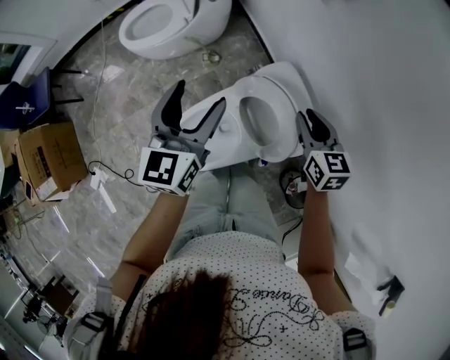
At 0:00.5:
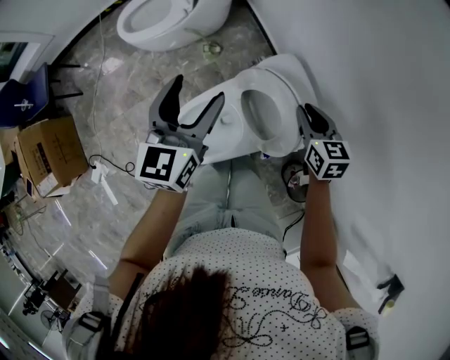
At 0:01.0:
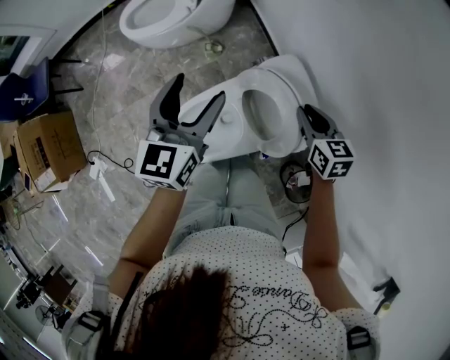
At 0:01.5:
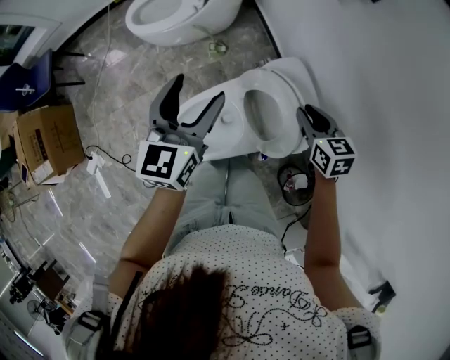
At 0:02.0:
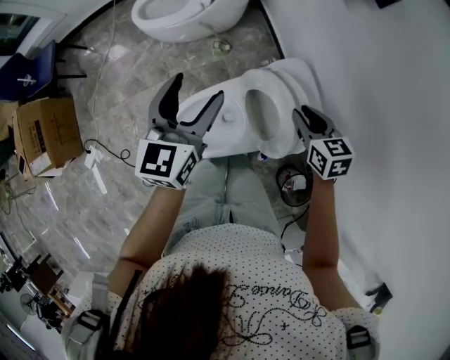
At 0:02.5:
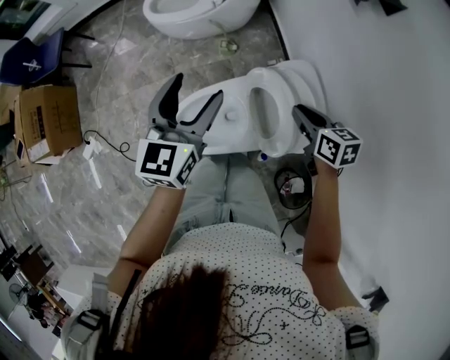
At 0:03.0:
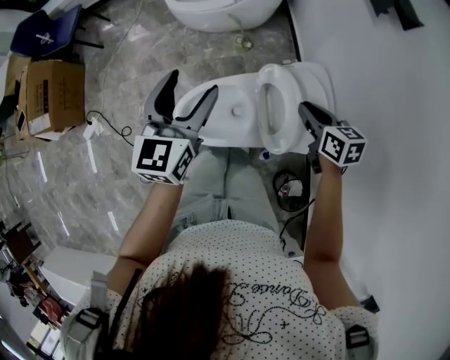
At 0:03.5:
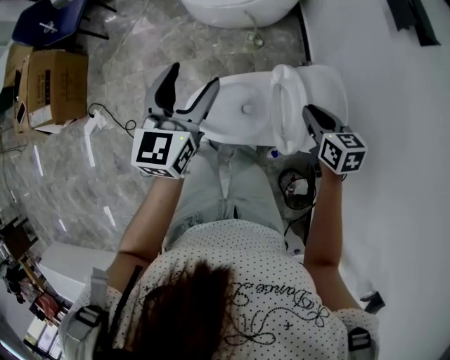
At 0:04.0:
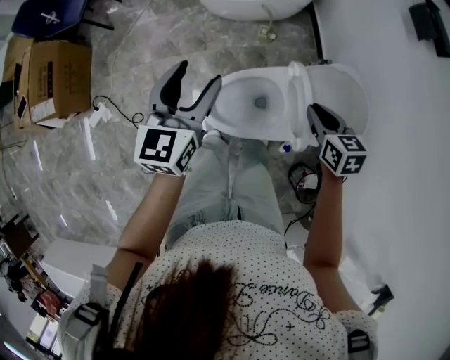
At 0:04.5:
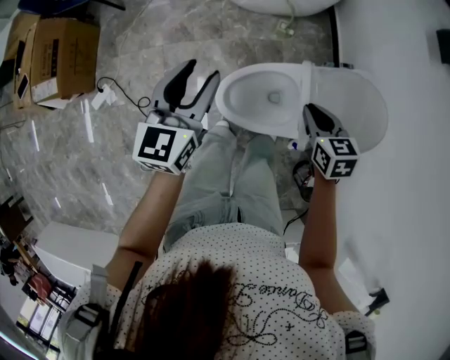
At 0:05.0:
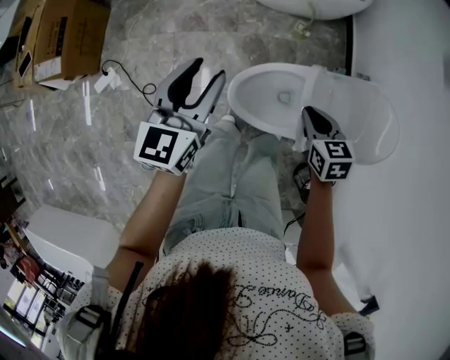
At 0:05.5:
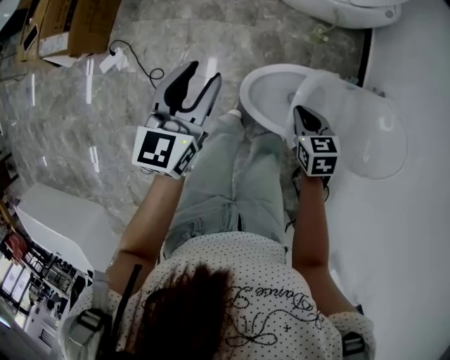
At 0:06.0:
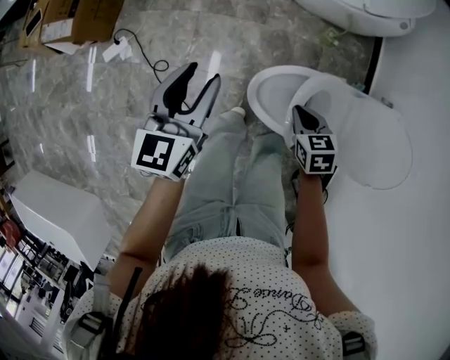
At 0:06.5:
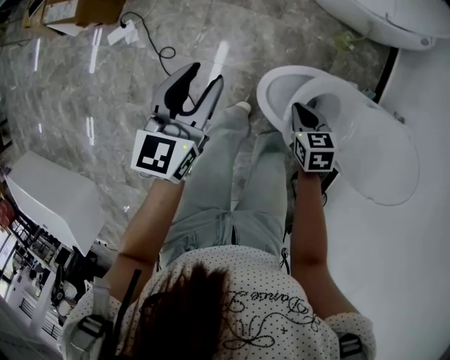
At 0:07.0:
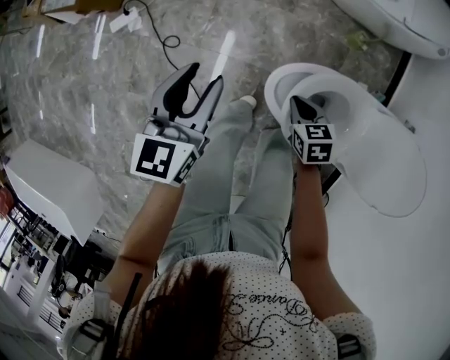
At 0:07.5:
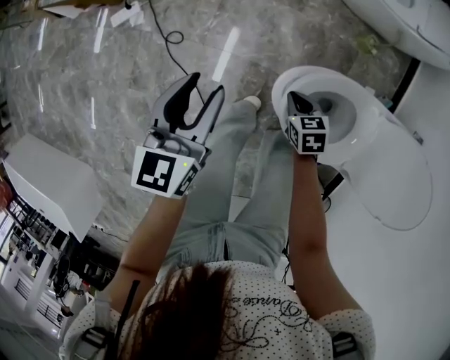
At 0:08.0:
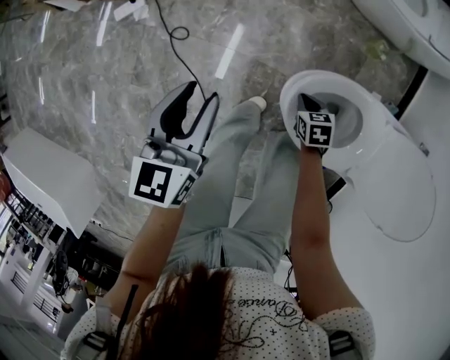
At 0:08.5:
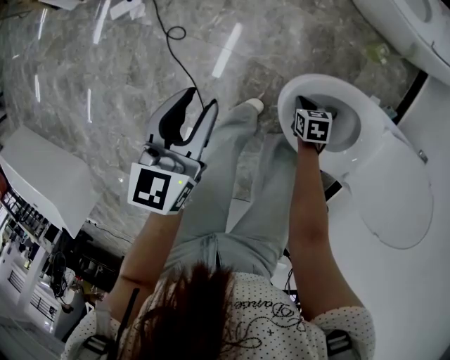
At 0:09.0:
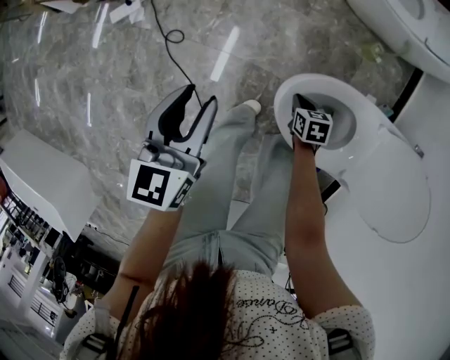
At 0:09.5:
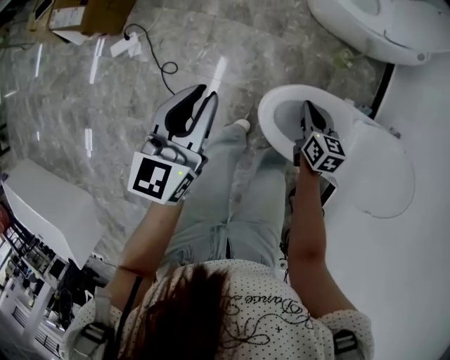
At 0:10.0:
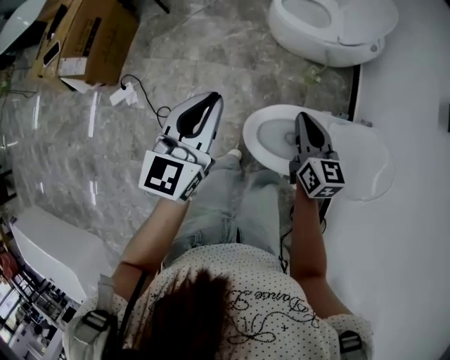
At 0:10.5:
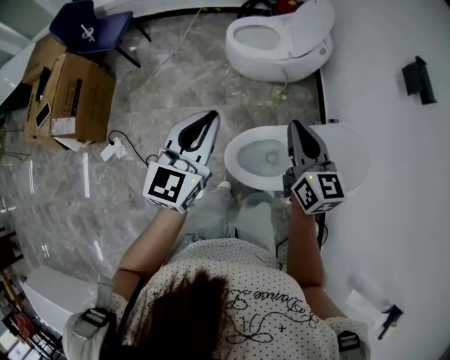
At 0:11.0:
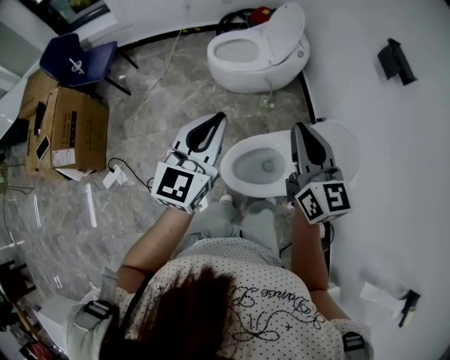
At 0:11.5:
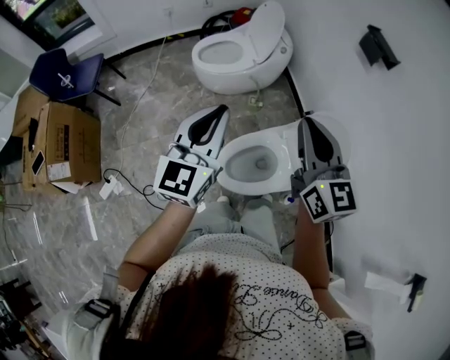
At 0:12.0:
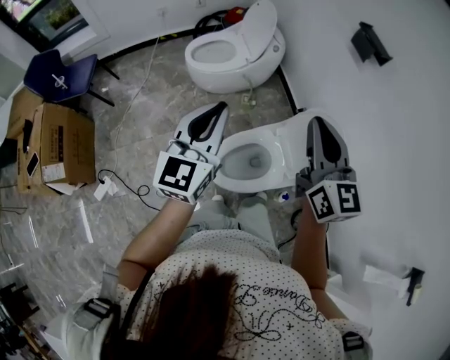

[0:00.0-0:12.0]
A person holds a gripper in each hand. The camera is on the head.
0:00.0 to 0:02.0: The right gripper changes place by approximately 5 cm.
0:02.0 to 0:04.0: Both grippers move to the left, roughly 20 cm.
0:04.0 to 0:06.0: The right gripper goes roughly 30 cm to the left and downward, and changes its angle by roughly 30 degrees; the left gripper is displaced to the left by roughly 20 cm.
0:06.0 to 0:08.0: The left gripper travels downward and to the left by some 15 cm, while the right gripper is displaced downward by roughly 25 cm.
0:08.0 to 0:10.0: The left gripper shifts some 25 cm upward, turns by some 30 degrees, and closes up. The right gripper heads upward, covering about 40 cm, and angles its fingers upward, by about 40 degrees.
0:10.0 to 0:12.0: The right gripper is displaced upward by some 25 cm, and swivels approximately 40 degrees; the left gripper ends up about 20 cm from where it was, and swivels roughly 30 degrees.

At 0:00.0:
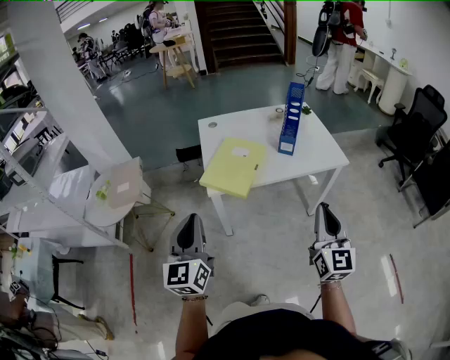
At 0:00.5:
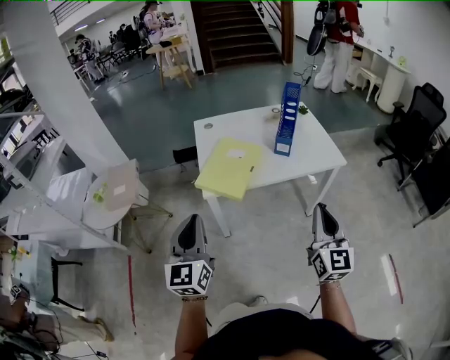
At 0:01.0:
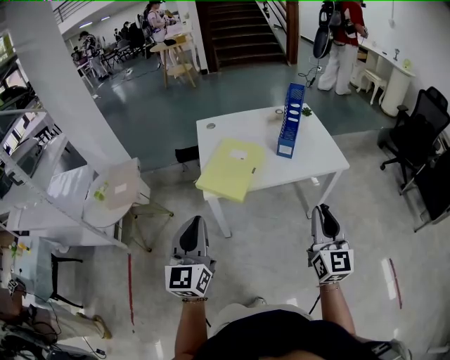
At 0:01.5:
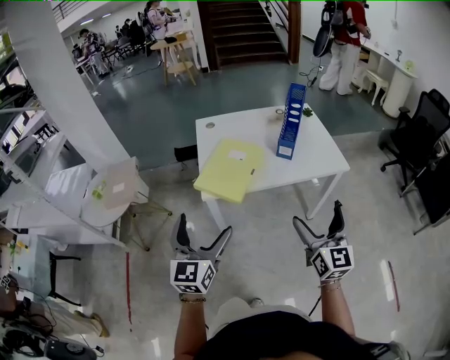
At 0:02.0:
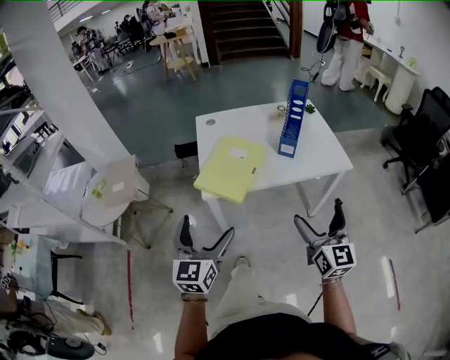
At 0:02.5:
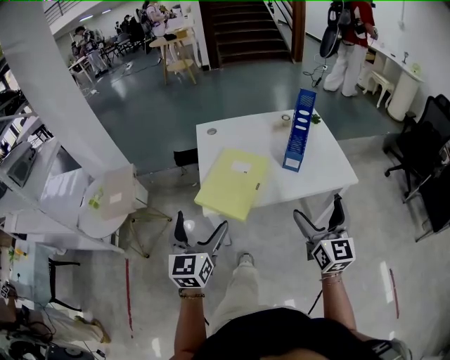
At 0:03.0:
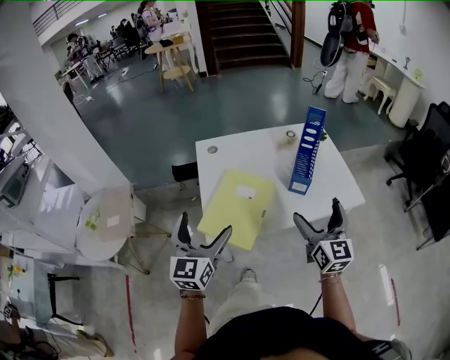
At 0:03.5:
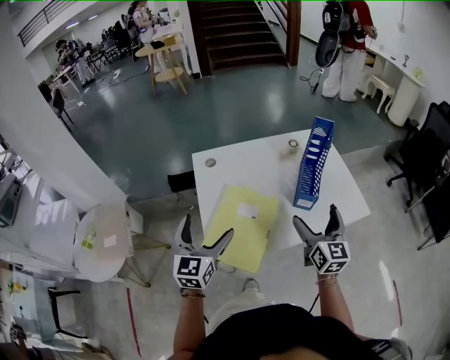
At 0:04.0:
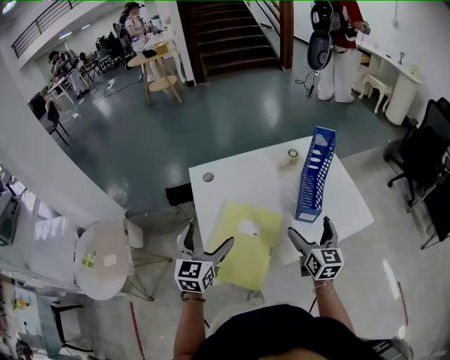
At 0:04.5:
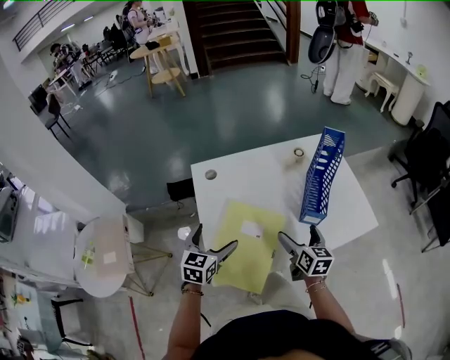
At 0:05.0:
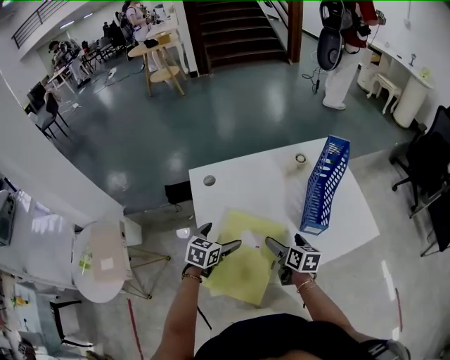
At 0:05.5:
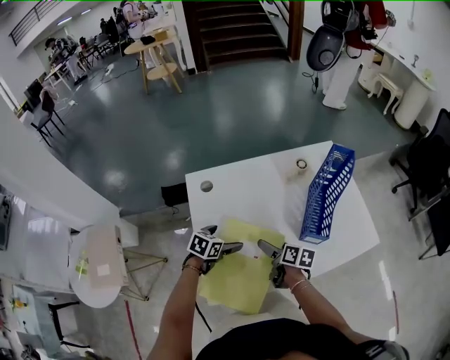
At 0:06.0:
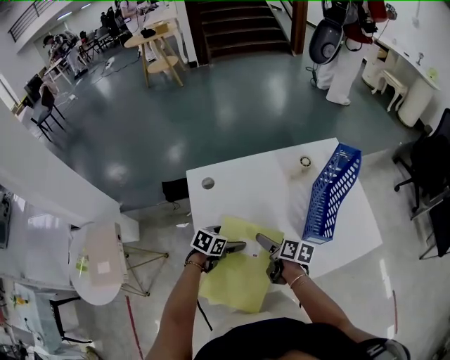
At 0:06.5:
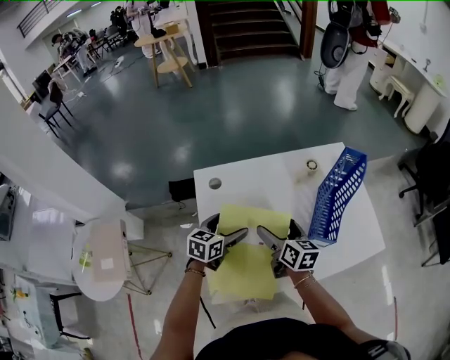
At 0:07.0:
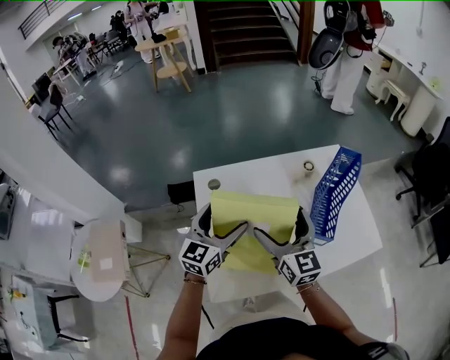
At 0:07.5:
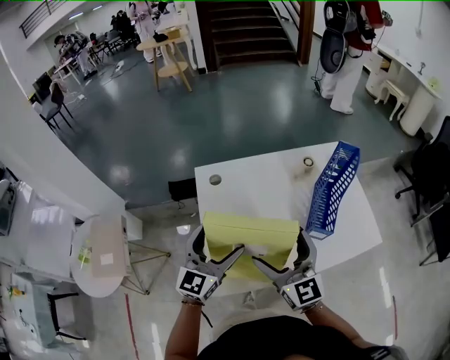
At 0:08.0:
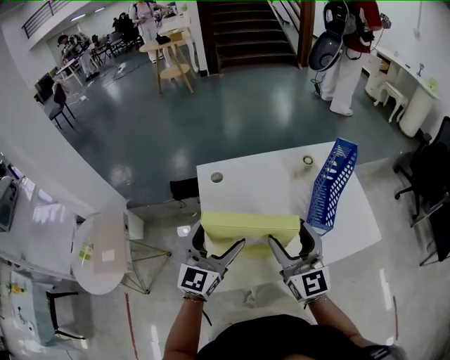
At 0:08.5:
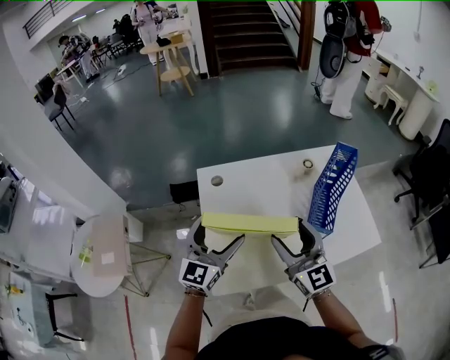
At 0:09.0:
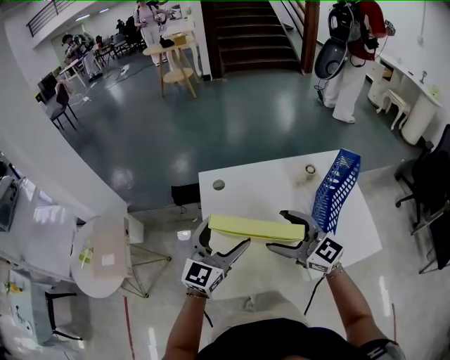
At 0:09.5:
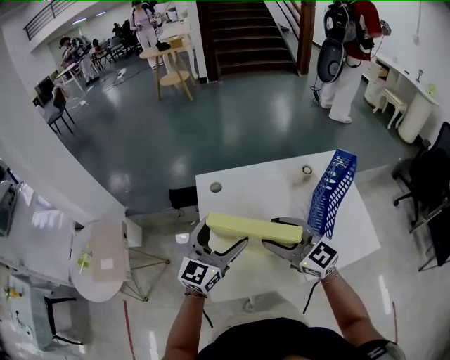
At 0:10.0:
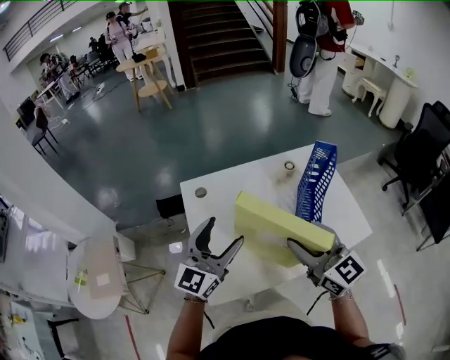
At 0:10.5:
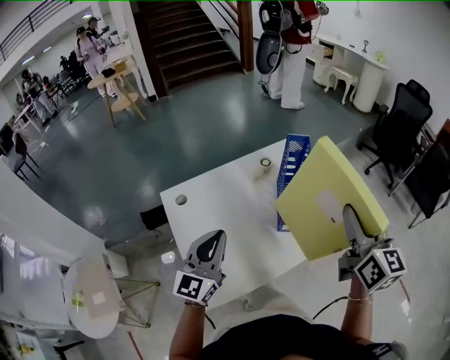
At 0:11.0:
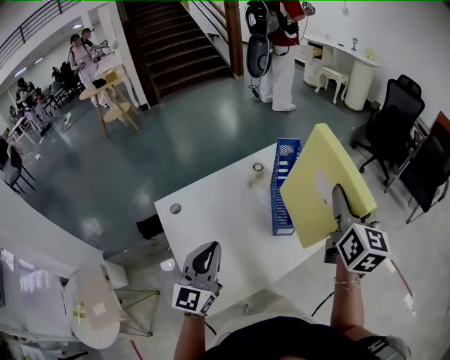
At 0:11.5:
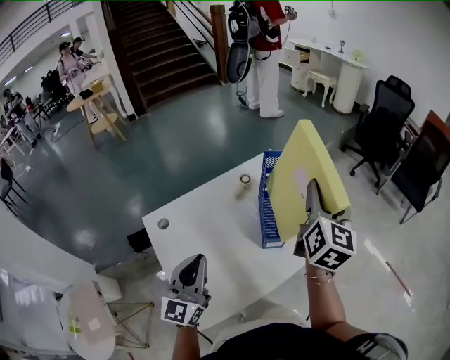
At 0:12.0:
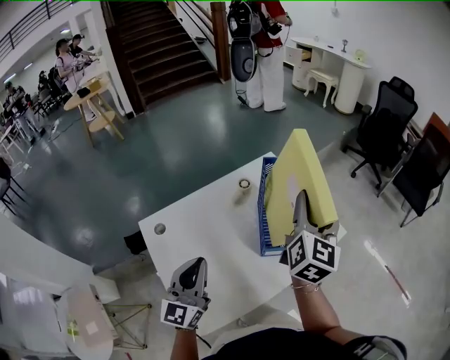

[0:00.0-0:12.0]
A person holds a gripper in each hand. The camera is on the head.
0:00.0 to 0:02.0: The right gripper is displaced forward by roughly 5 cm, and opens, while the left gripper travels to the right, forward and downward by roughly 10 cm, and opens its fingers.
0:02.0 to 0:04.0: The grippers both shift forward by about 35 cm.
0:04.0 to 0:06.0: The right gripper shifts roughly 25 cm downward, to the left and forward, and changes its angle by approximately 50 degrees, while the left gripper heads downward and forward, covering approximately 25 cm, and tips its fingers downward by about 30 degrees.
0:06.0 to 0:08.0: The two grippers go about 30 cm upward. The left gripper tips its fingers upward by roughly 50 degrees. The right gripper twists about 60 degrees counterclockwise, seen from behind, and closes up.
0:08.0 to 0:10.0: The right gripper travels to the right by about 5 cm. The left gripper moves approximately 5 cm.
0:10.0 to 0:12.0: The right gripper changes place by approximately 25 cm, and rotates approximately 70 degrees. Meanwhile the left gripper ends up about 5 cm from where it was, and closes its fingers.

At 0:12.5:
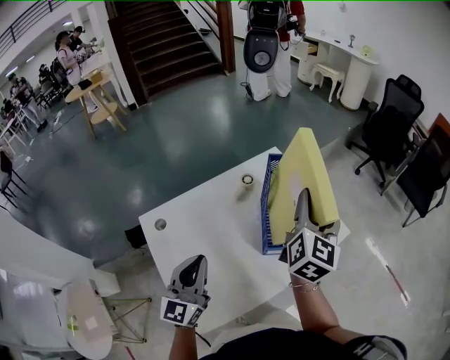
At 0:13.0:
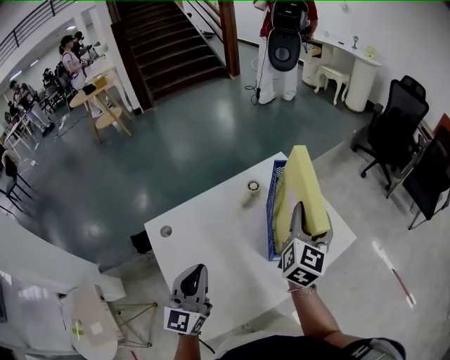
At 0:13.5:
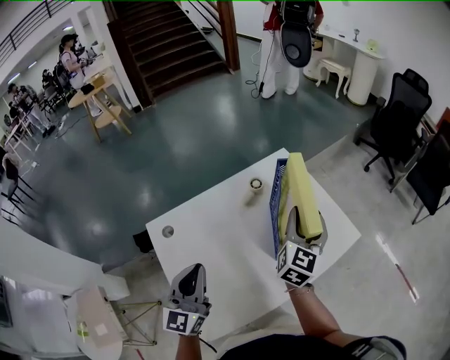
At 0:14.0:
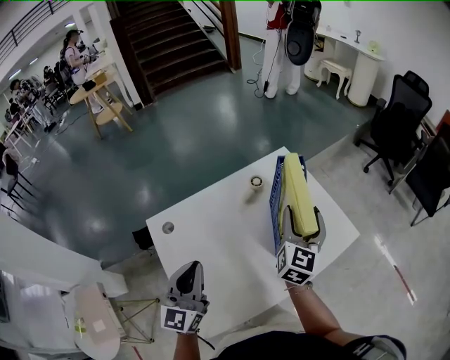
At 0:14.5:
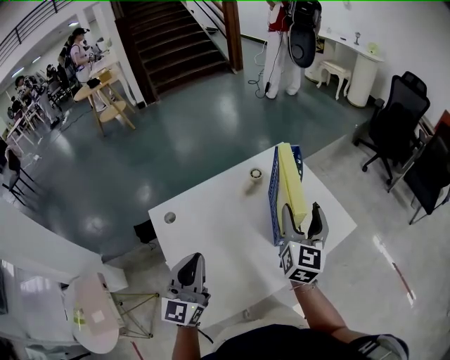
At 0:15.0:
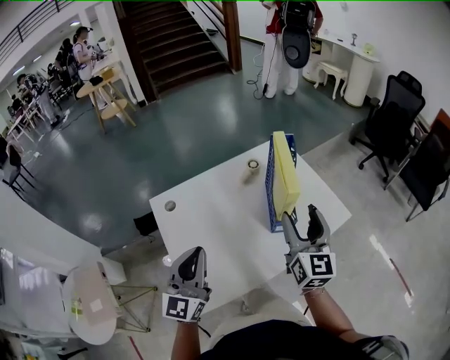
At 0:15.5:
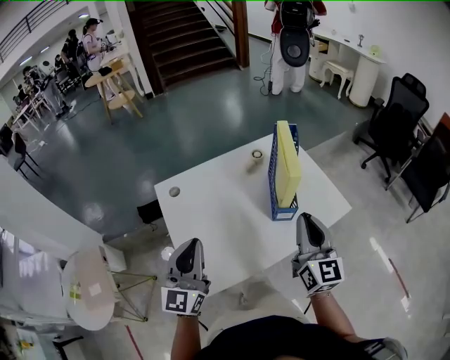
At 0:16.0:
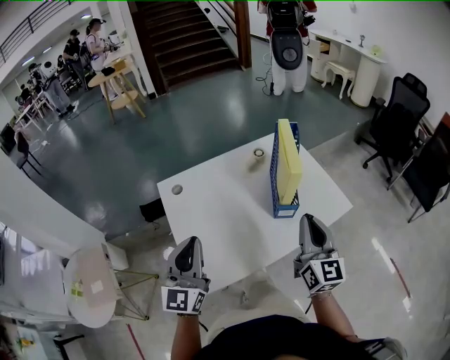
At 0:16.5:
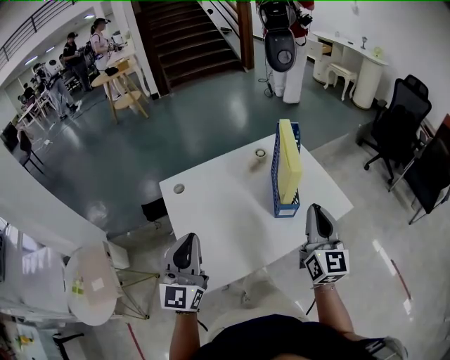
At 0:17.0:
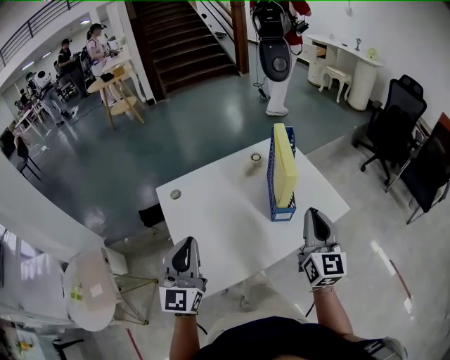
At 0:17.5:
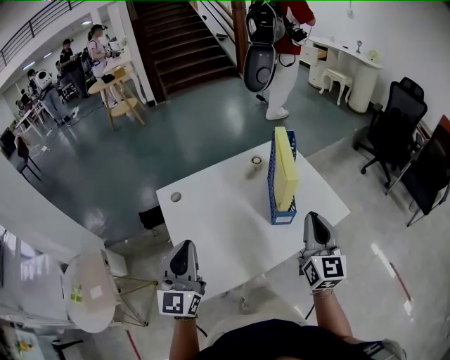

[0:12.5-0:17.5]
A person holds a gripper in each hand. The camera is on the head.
0:12.5 to 0:15.0: The left gripper travels backward by some 10 cm. The right gripper moves backward and downward, about 15 cm, and changes its angle by some 20 degrees.
0:15.0 to 0:17.5: The right gripper is displaced backward by some 5 cm, and closes. Meanwhile the left gripper ends up roughly 5 cm from where it was.
